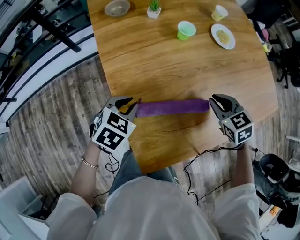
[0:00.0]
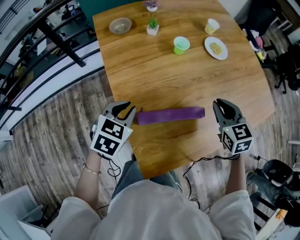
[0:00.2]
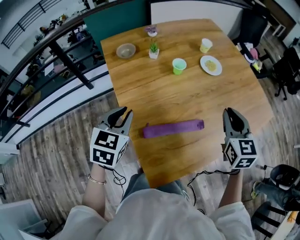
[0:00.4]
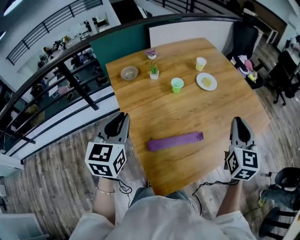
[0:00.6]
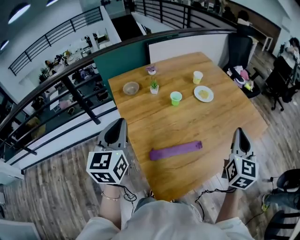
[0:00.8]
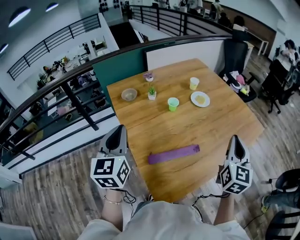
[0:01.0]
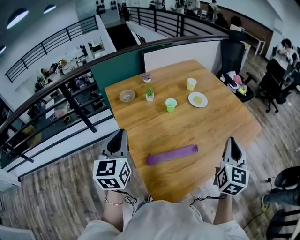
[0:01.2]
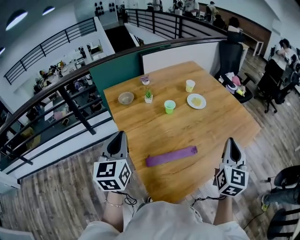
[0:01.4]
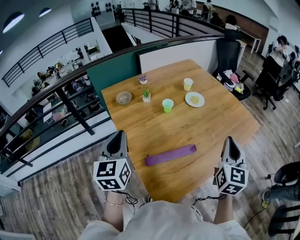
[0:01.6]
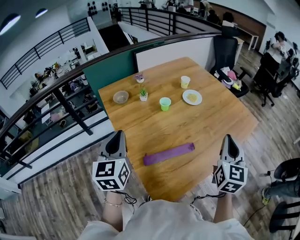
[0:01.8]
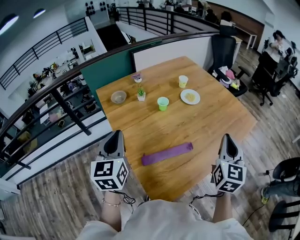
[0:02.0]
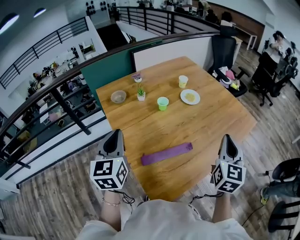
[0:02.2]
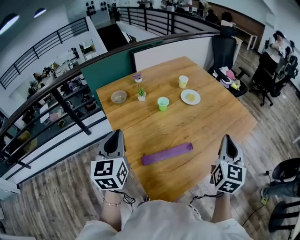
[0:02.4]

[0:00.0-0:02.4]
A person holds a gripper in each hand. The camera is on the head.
0:00.0 to 0:01.2: The left gripper goes roughly 30 cm upward, and tilts its fingers roughly 50 degrees upward. The right gripper travels upward and backward by roughly 30 cm, and tilts its fingers roughly 40 degrees upward.
0:01.2 to 0:02.4: The grippers stay close to where they were, moving slightly.

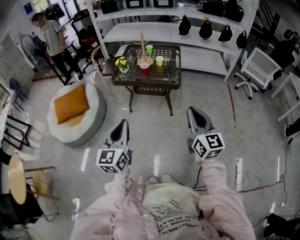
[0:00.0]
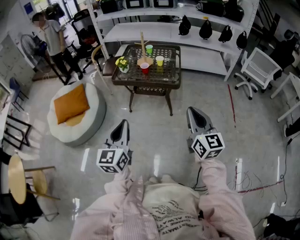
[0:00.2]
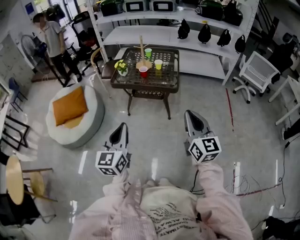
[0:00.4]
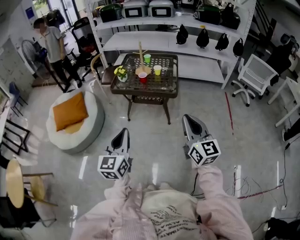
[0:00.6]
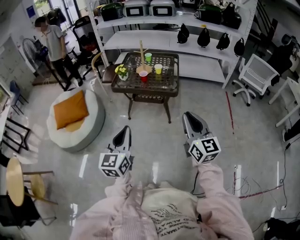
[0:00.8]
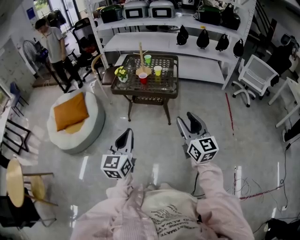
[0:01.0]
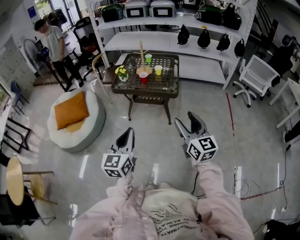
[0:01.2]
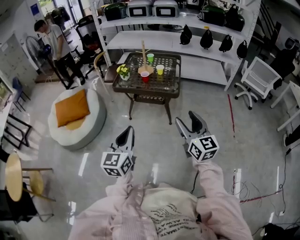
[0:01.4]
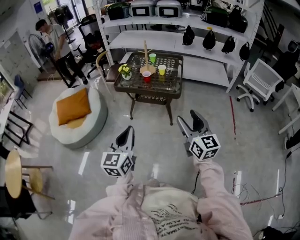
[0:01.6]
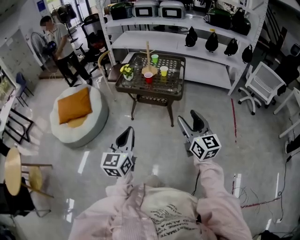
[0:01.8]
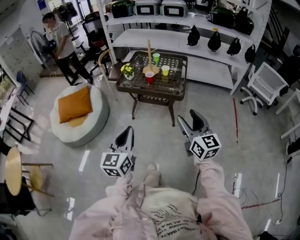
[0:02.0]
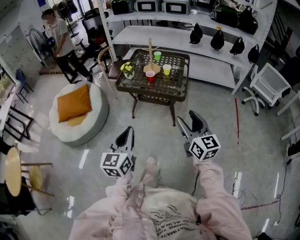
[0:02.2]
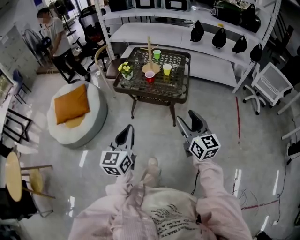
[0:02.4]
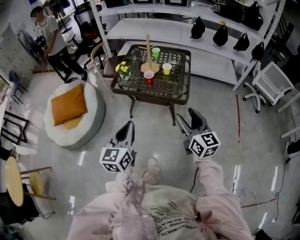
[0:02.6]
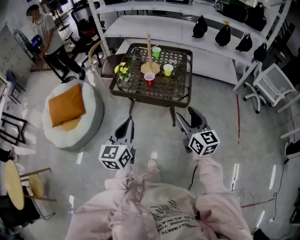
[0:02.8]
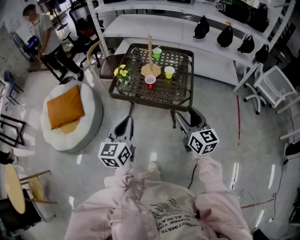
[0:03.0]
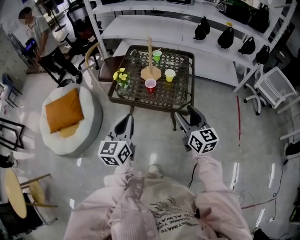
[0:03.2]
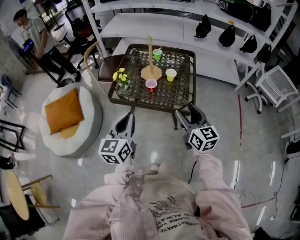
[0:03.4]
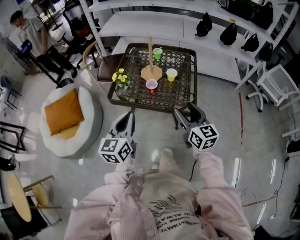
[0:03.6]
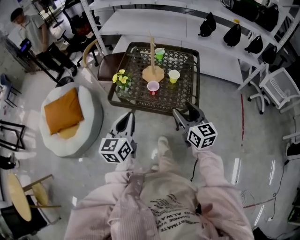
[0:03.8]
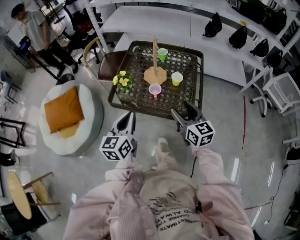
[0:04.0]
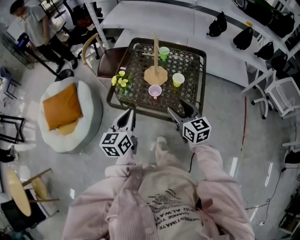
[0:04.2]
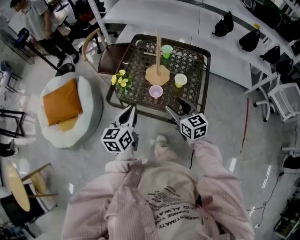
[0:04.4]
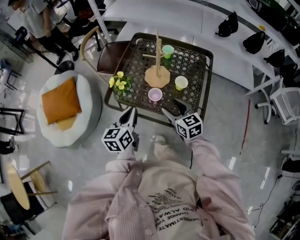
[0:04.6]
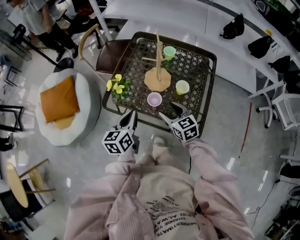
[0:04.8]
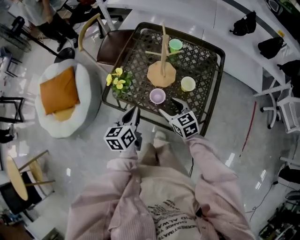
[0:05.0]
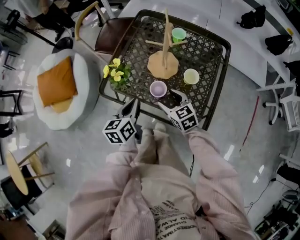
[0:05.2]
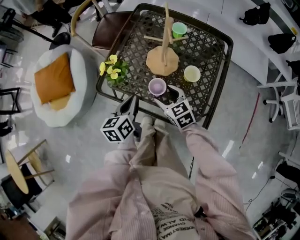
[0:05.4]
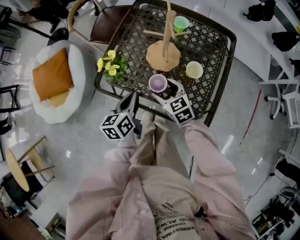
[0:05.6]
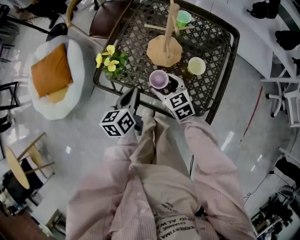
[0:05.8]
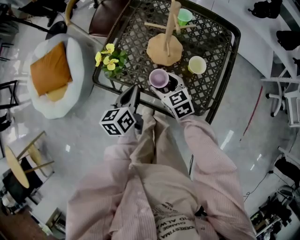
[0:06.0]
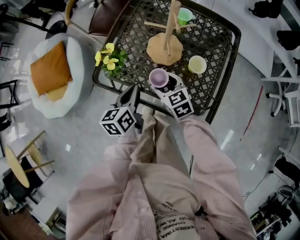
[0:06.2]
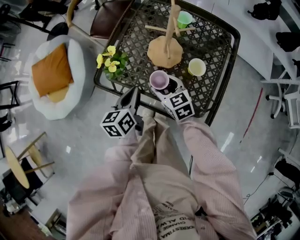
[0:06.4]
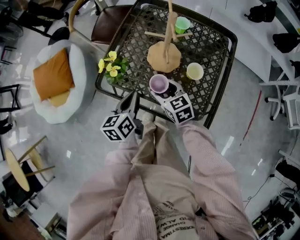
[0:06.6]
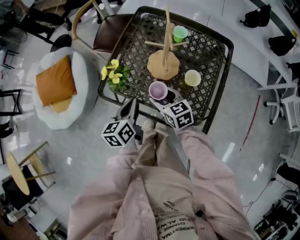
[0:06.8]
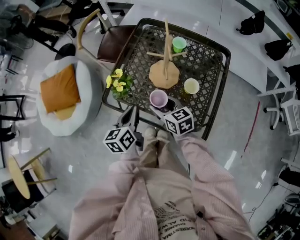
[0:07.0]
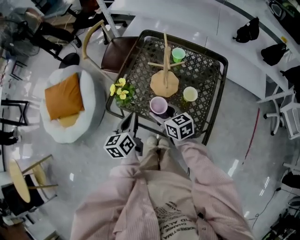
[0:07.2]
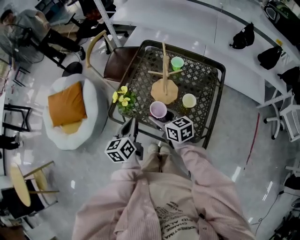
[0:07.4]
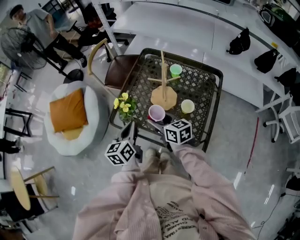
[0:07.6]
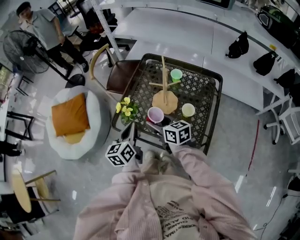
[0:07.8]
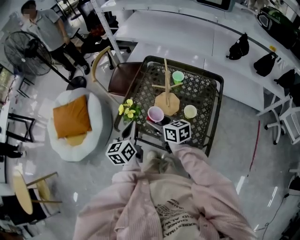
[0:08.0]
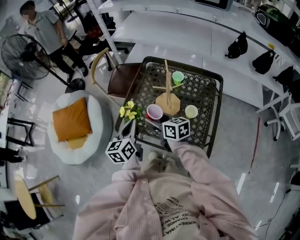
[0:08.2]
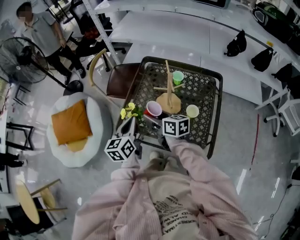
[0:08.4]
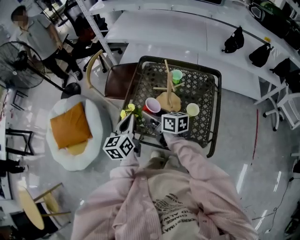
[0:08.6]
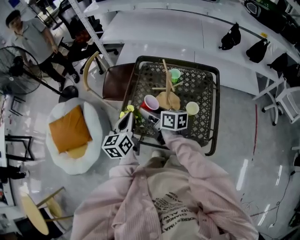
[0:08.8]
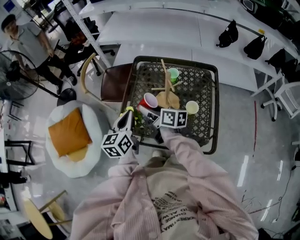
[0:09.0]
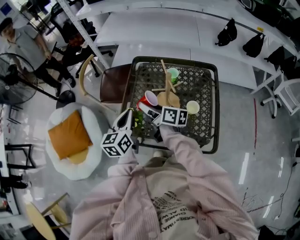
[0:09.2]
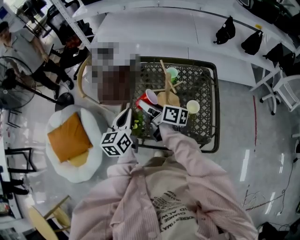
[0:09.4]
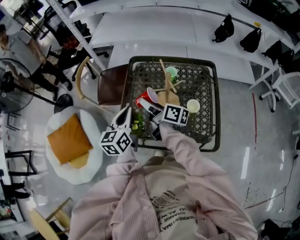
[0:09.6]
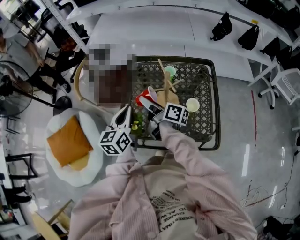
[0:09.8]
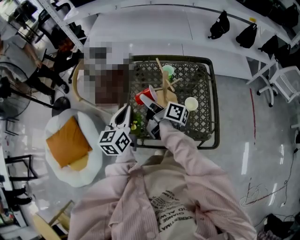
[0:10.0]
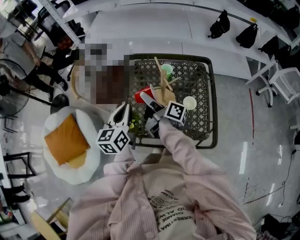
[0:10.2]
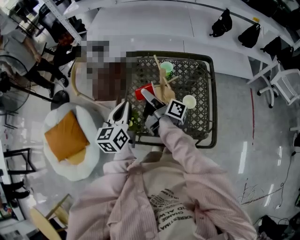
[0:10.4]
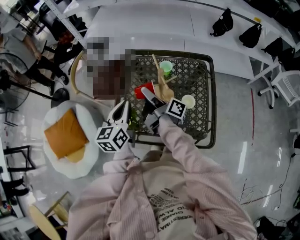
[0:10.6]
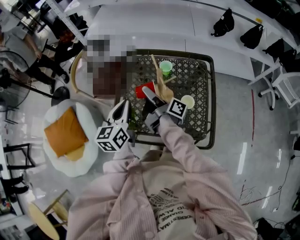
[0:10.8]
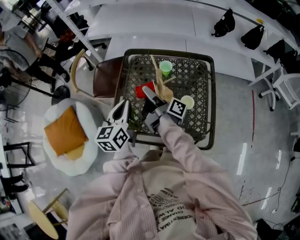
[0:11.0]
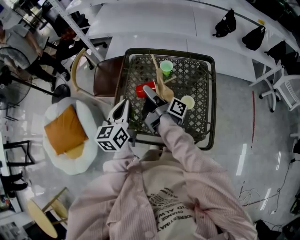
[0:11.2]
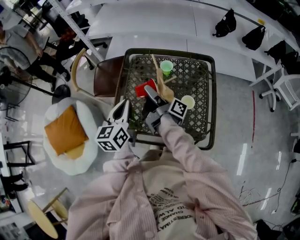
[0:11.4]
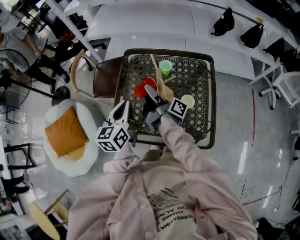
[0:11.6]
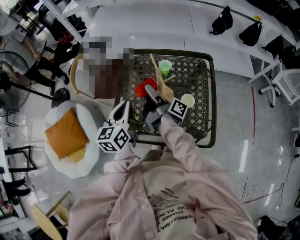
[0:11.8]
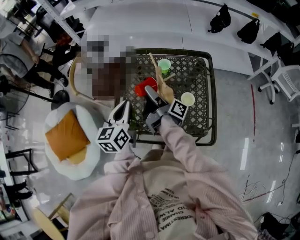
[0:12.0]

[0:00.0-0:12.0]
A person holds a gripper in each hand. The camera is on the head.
0:00.0 to 0:01.6: The right gripper opens its fingers.
0:01.6 to 0:03.0: The two grippers go approximately 30 cm forward.
0:03.0 to 0:04.4: The two grippers go roughly 25 cm forward and downward.
0:04.4 to 0:06.0: Both grippers travel together downward and forward, some 20 cm. The right gripper swivels about 20 degrees. Meanwhile the left gripper rotates some 20 degrees.
0:06.0 to 0:07.6: Both grippers move upward, approximately 10 cm. The right gripper changes its angle by about 30 degrees.
0:07.6 to 0:09.0: The left gripper shifts some 10 cm forward and upward, while the right gripper is displaced forward by approximately 10 cm, and changes its angle by some 30 degrees.
0:09.0 to 0:10.4: The right gripper moves roughly 5 cm, and rotates some 40 degrees.
0:10.4 to 0:12.0: The grippers stay close to where they were, moving slightly.

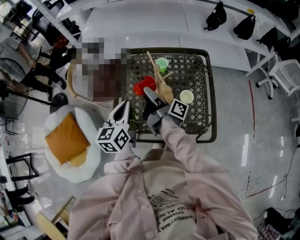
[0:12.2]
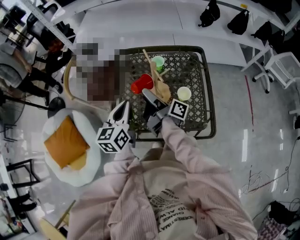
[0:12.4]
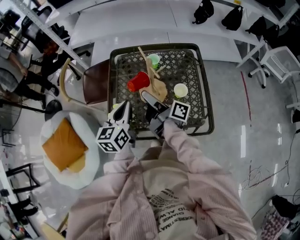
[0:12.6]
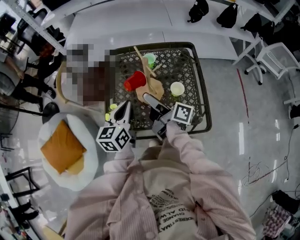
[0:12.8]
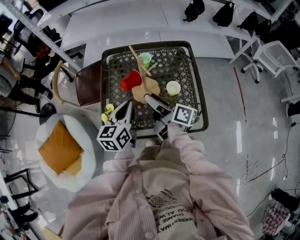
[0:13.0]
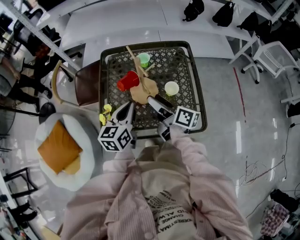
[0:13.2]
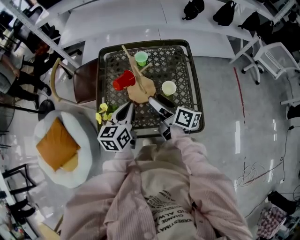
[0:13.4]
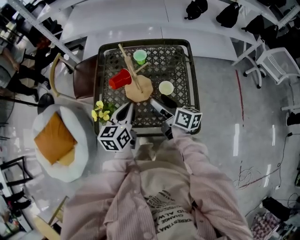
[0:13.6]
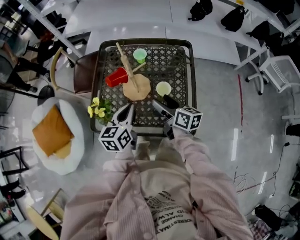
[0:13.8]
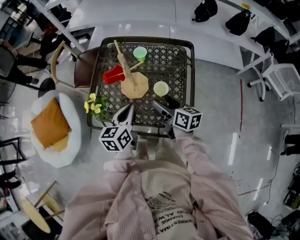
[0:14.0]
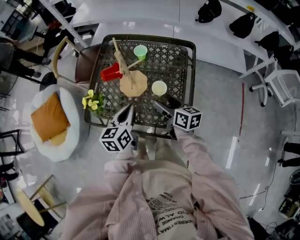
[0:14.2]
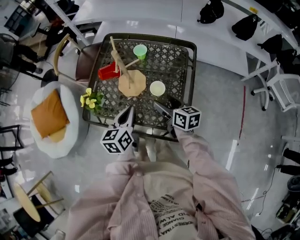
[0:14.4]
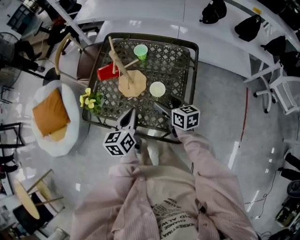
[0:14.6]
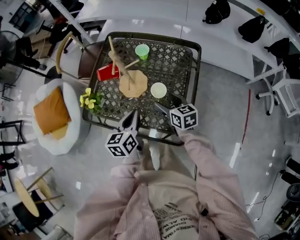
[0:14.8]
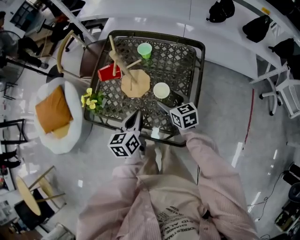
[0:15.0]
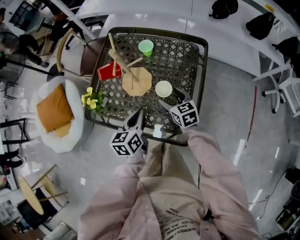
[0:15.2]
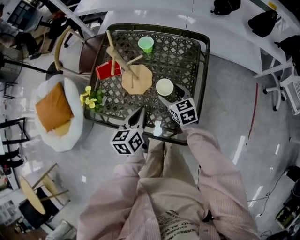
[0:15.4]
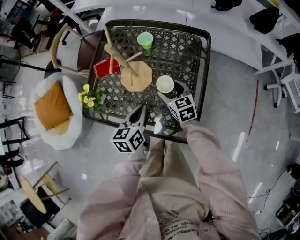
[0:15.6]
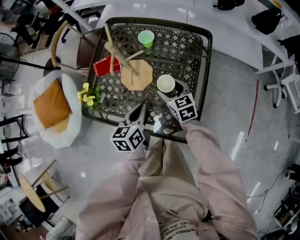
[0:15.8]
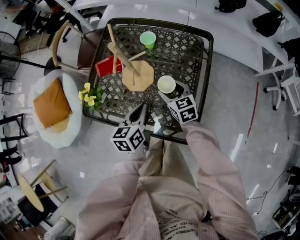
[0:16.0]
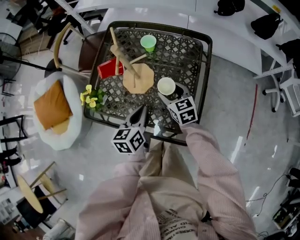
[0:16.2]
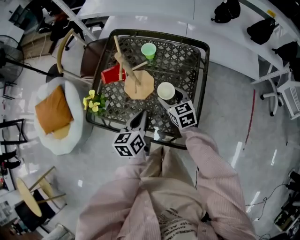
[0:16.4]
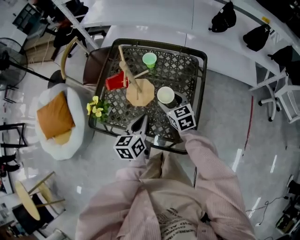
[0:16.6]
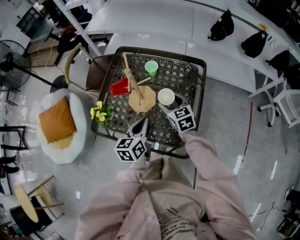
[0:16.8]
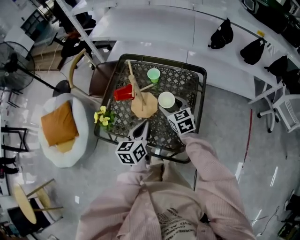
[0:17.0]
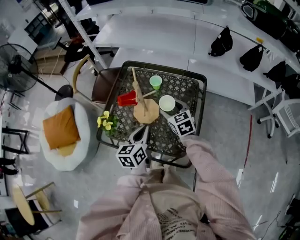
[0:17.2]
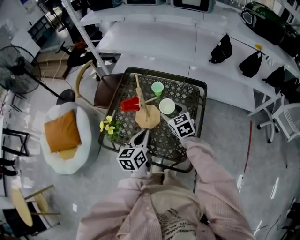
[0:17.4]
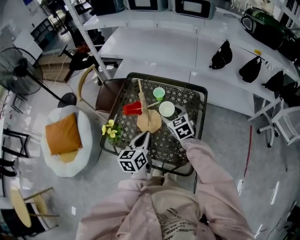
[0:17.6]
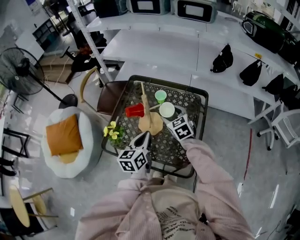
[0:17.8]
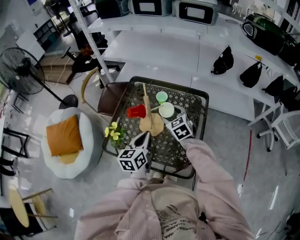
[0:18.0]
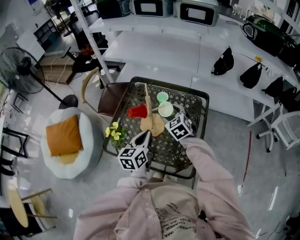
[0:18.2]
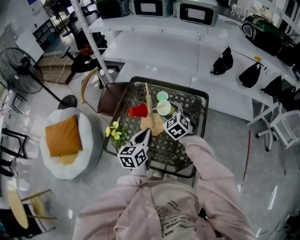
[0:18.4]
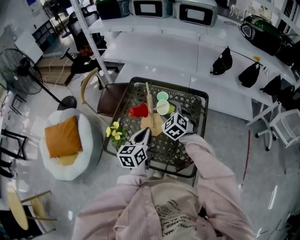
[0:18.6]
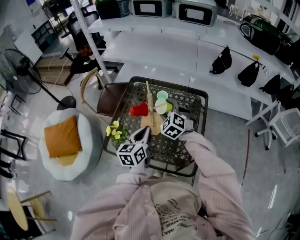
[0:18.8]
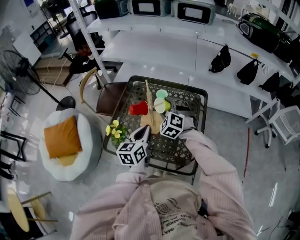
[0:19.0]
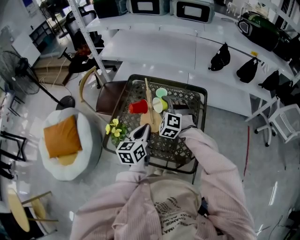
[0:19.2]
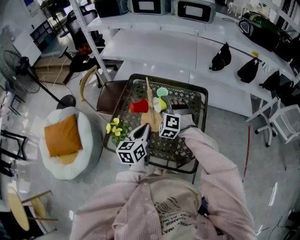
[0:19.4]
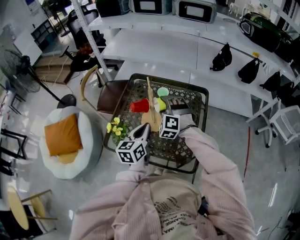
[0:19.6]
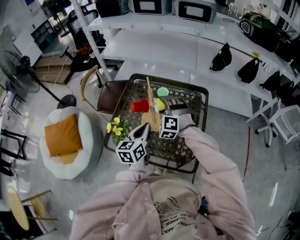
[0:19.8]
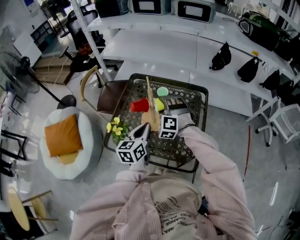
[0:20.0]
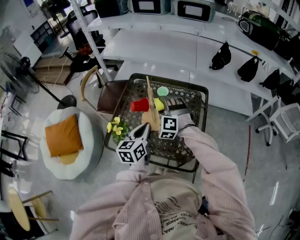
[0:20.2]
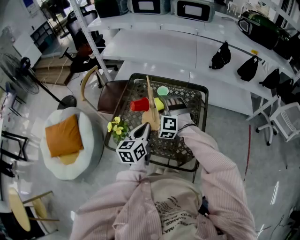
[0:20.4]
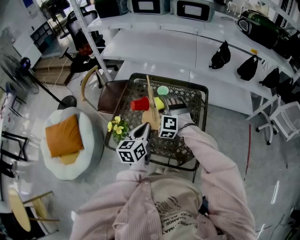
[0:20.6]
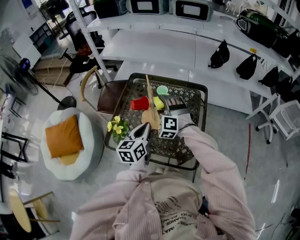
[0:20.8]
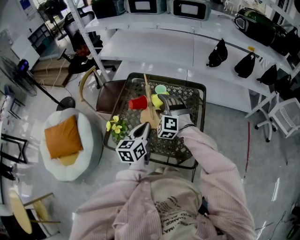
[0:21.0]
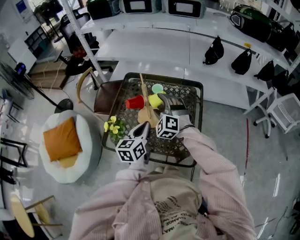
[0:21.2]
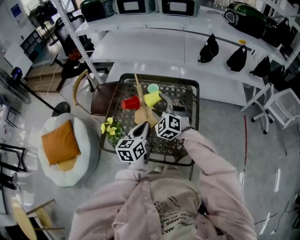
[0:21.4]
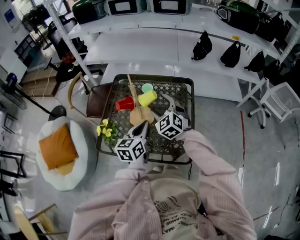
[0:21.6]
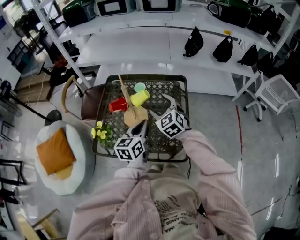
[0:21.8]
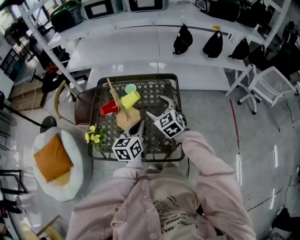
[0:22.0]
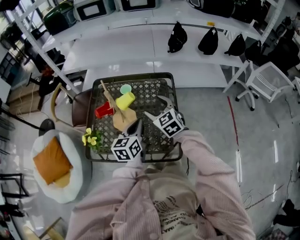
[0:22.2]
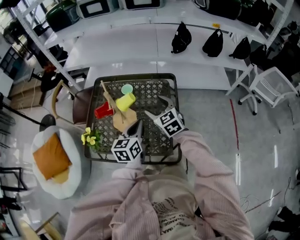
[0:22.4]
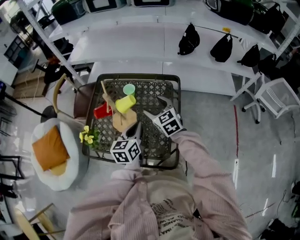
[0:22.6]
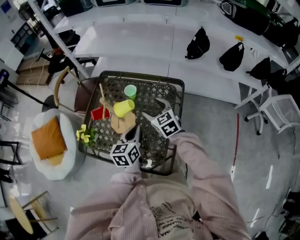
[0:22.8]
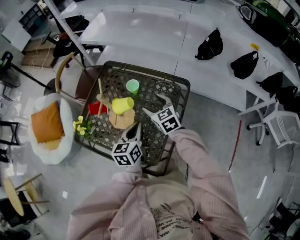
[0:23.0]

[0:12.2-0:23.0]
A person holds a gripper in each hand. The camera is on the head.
0:12.2 to 0:13.8: The left gripper is displaced to the right and downward by approximately 15 cm, while the right gripper travels to the right and backward by approximately 20 cm, and rolls counterclockwise, seen from behind, by roughly 50 degrees.
0:13.8 to 0:15.2: The right gripper goes approximately 10 cm downward, and turns by some 40 degrees, while the left gripper is displaced downward and to the right by about 10 cm.
0:15.2 to 0:16.8: The right gripper shifts approximately 5 cm upward.
0:16.8 to 0:18.4: The right gripper moves upward, forward and to the left, some 10 cm, and turns by some 30 degrees. Meanwhile the left gripper shifts roughly 5 cm upward.
0:18.4 to 0:20.0: The right gripper rotates around the line of its fingers by roughly 40 degrees, counterclockwise from behind.
0:20.0 to 0:21.4: The right gripper rotates some 30 degrees.
0:21.4 to 0:23.0: Both grippers move to the right, forward and downward, about 15 cm. The right gripper changes its angle by approximately 40 degrees.
